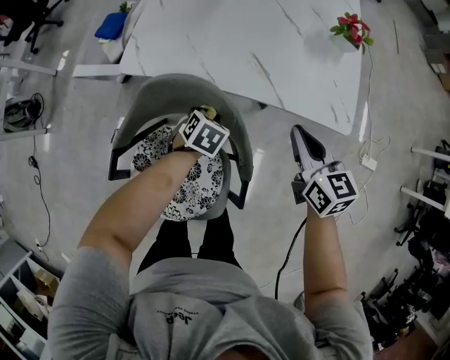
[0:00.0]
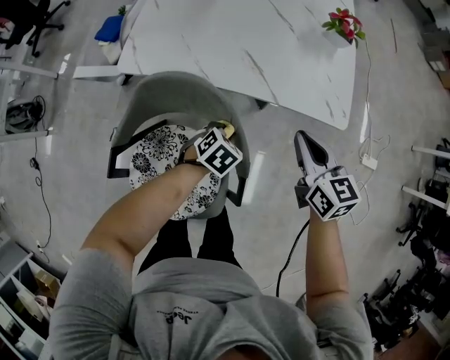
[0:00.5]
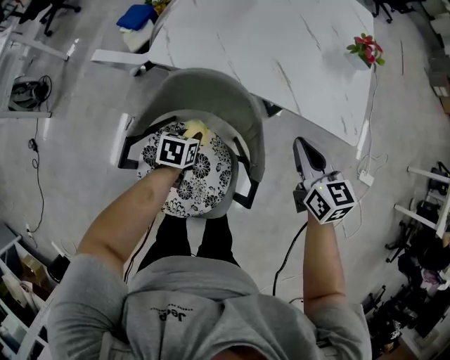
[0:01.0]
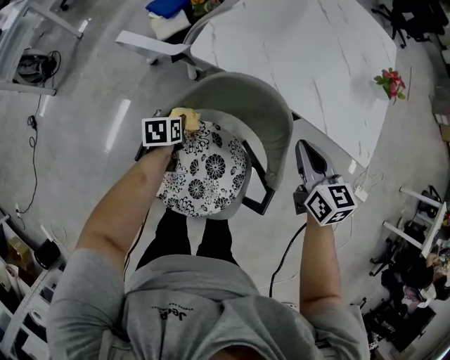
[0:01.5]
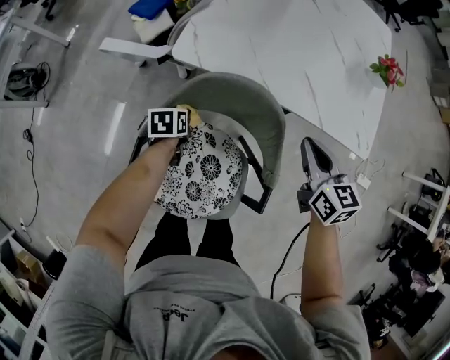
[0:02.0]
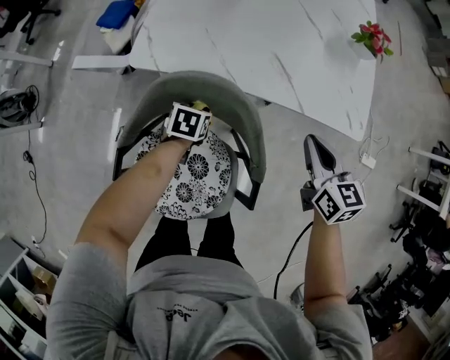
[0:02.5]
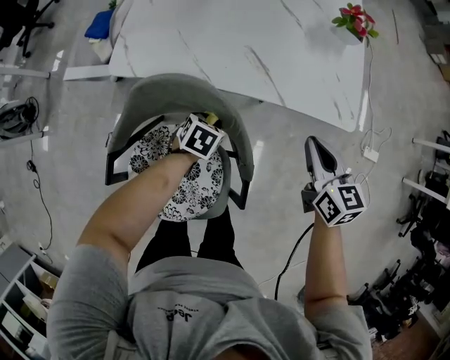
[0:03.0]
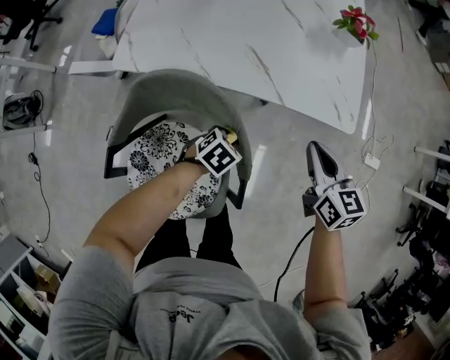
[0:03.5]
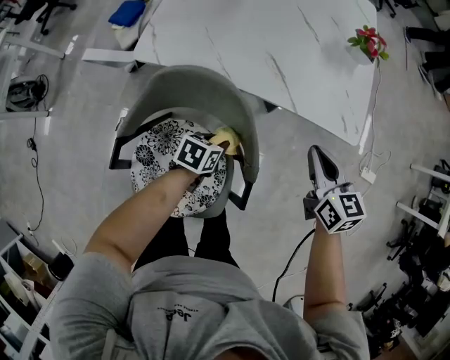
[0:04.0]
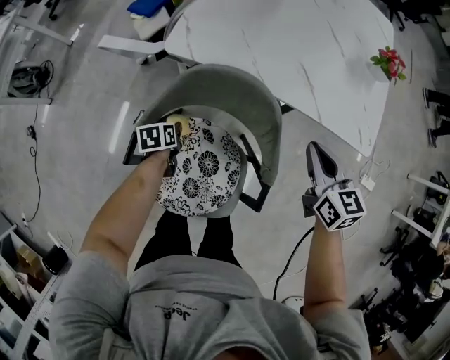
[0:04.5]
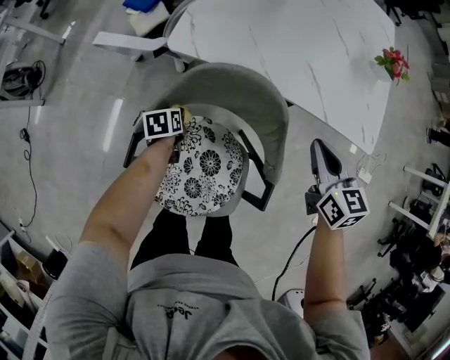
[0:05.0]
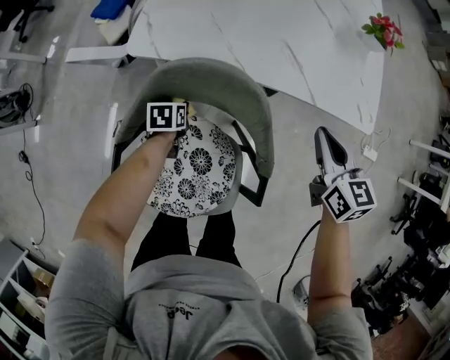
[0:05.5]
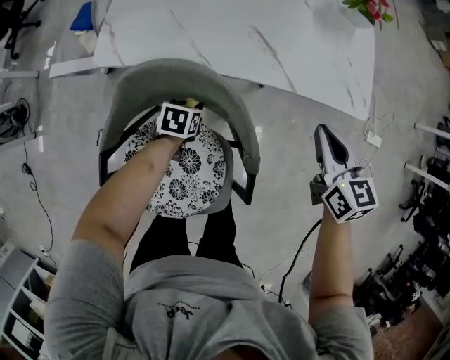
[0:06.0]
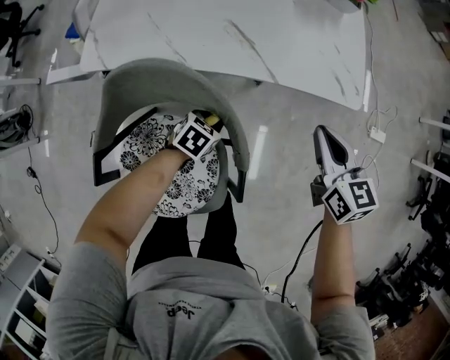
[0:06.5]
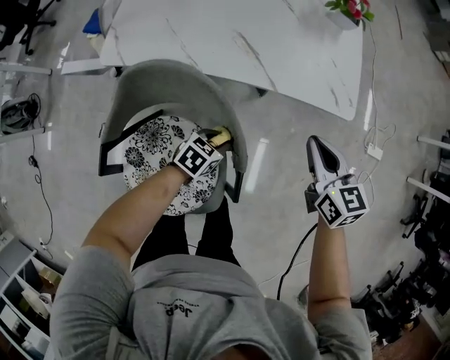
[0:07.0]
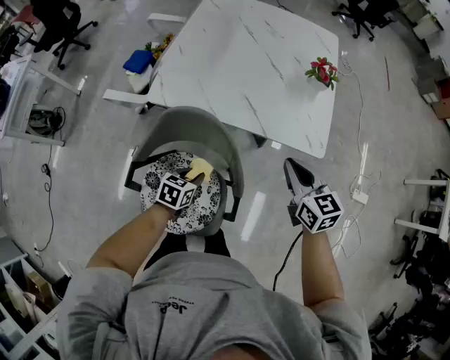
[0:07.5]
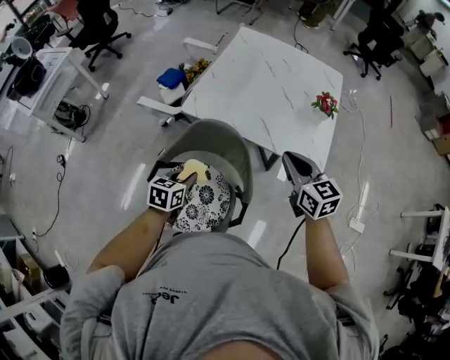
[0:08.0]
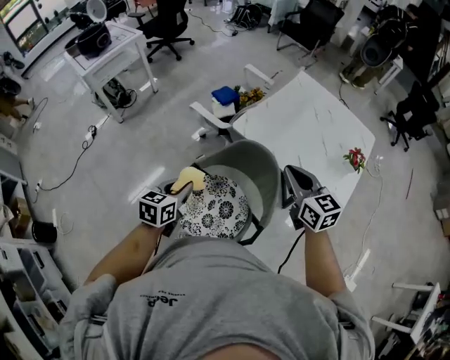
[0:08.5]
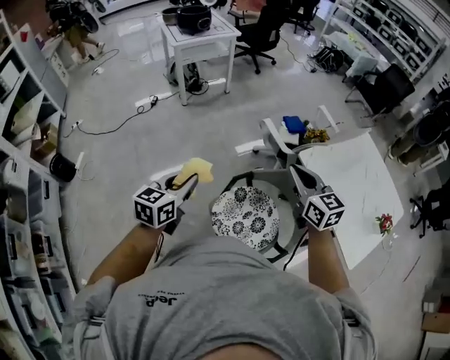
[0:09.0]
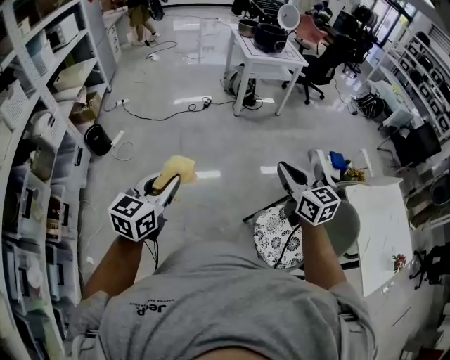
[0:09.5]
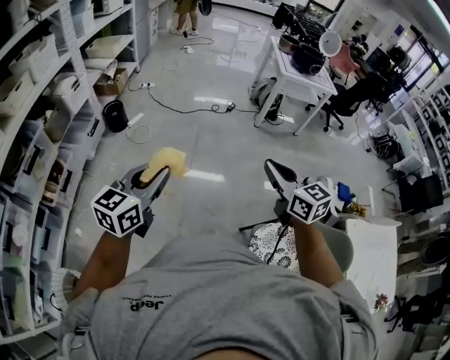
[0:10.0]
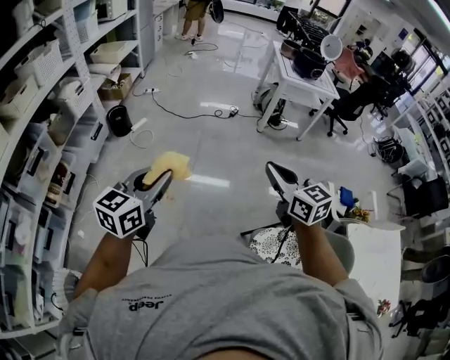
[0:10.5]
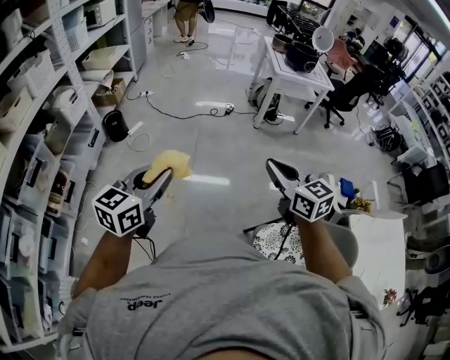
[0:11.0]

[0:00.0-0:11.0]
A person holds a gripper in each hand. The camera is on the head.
0.0 to 2.0 s: The left gripper goes approximately 25 cm to the left, and rotates around the line of its fingers by some 40 degrees, counterclockwise from behind, while the right gripper moves to the left, approximately 10 cm.
2.0 to 3.5 s: The left gripper moves approximately 35 cm, and rotates around the line of its fingers by about 50 degrees, clockwise from behind. Meanwhile the right gripper moves roughly 15 cm.
3.5 to 5.5 s: The left gripper changes place by approximately 30 cm, and rolls counterclockwise, seen from behind, by about 40 degrees.
5.5 to 7.5 s: The left gripper shifts roughly 25 cm upward, to the right and backward, and turns by about 20 degrees, while the right gripper travels upward and to the right by about 10 cm.
7.5 to 9.0 s: Both grippers are carried approximately 40 cm. The left gripper tilts its fingers some 30 degrees upward. Meanwhile the right gripper turns by roughly 50 degrees.
9.0 to 11.0 s: The two grippers travel together, some 40 cm. The left gripper rotates roughly 30 degrees, while the right gripper turns by some 40 degrees.

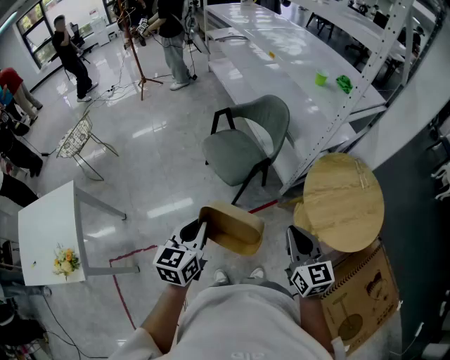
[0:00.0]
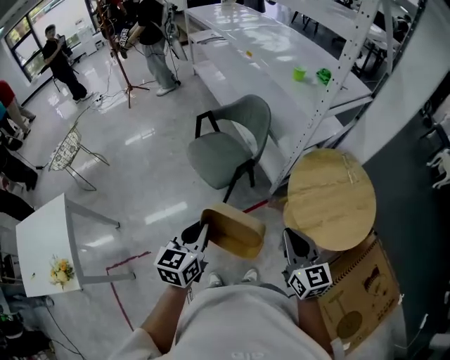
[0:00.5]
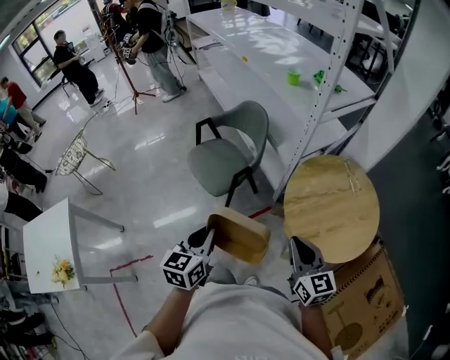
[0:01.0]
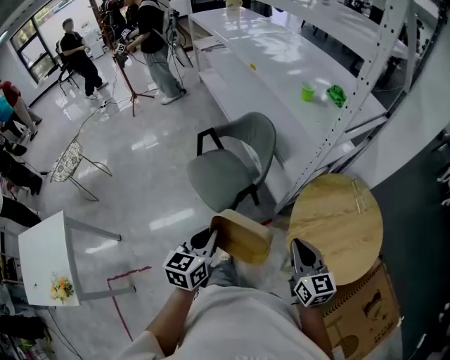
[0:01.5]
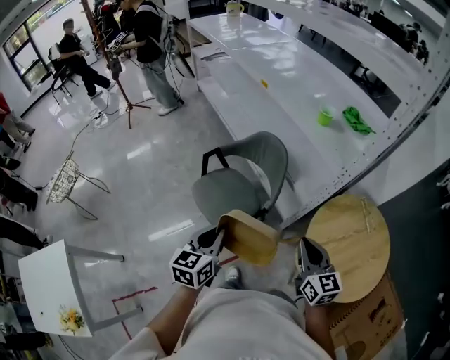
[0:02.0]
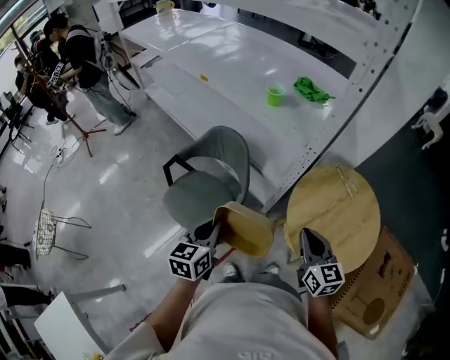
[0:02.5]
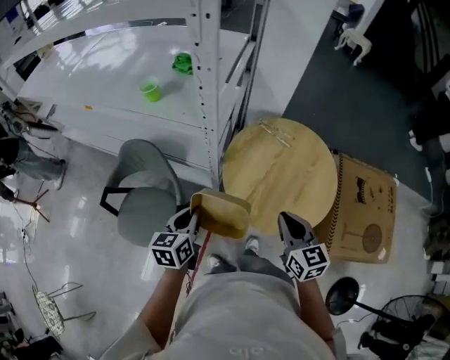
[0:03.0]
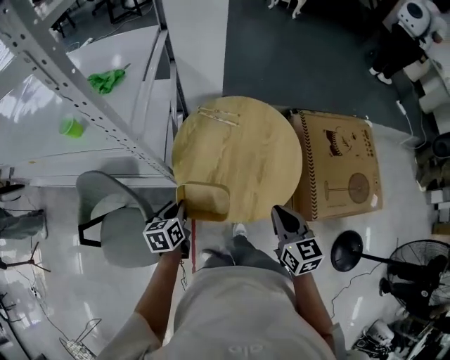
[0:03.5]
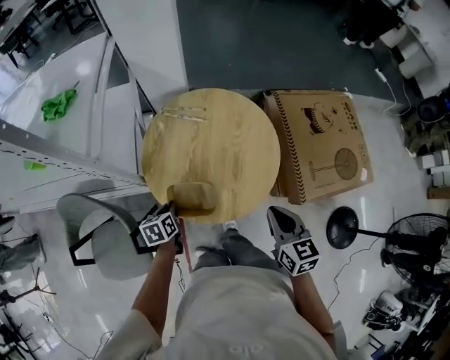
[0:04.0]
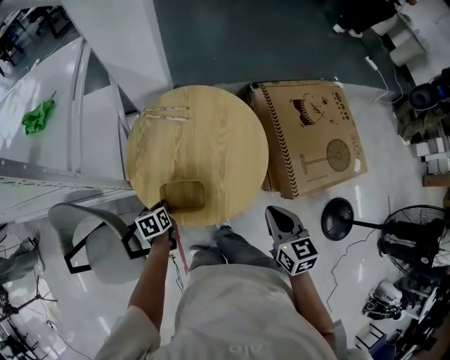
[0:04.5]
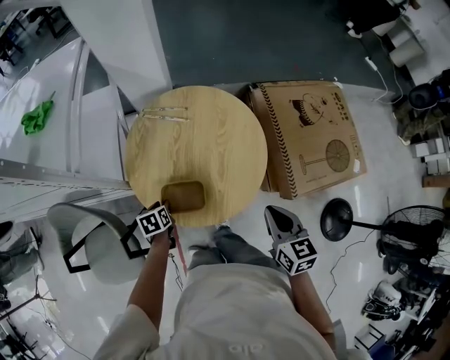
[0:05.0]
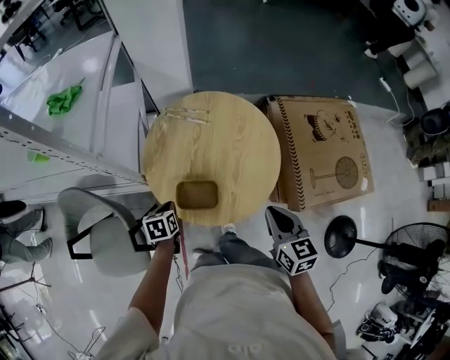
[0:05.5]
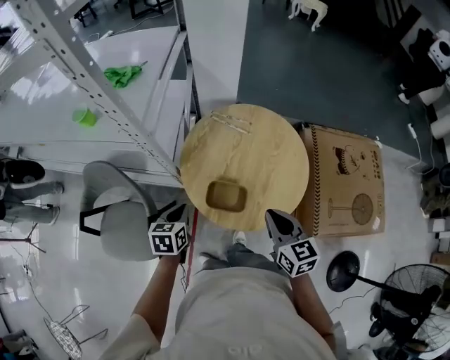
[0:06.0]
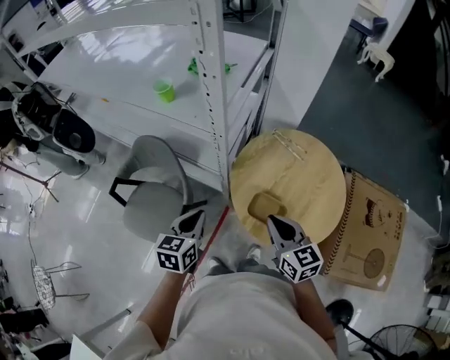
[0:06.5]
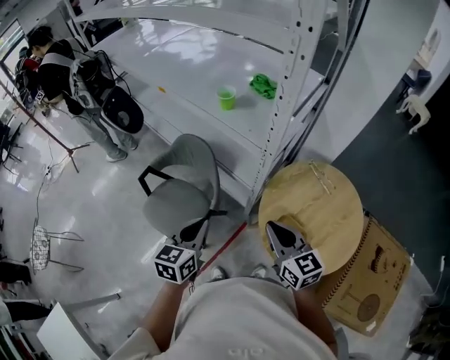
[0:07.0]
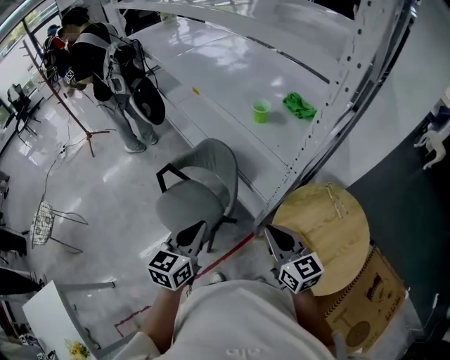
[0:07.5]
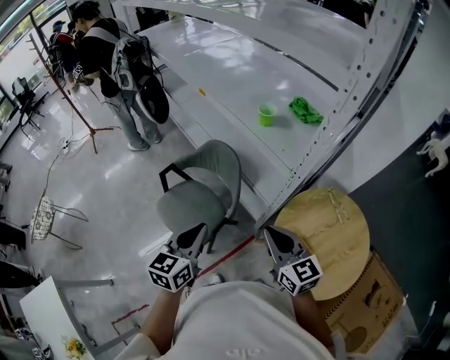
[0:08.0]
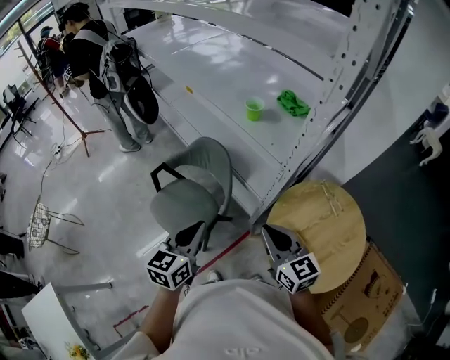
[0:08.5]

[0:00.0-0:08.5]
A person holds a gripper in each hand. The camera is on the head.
0.0 to 2.0 s: The two grippers go roughly 30 cm forward.
2.0 to 4.0 s: The left gripper shifts by some 50 cm, and rotates some 60 degrees; the right gripper changes place by about 40 cm, and swivels roughly 60 degrees.
4.0 to 6.5 s: The right gripper ends up some 25 cm from where it was, and swivels roughly 40 degrees; the left gripper moves upward, roughly 20 cm, turns by about 30 degrees, and opens and closes again.
6.5 to 8.5 s: The left gripper moves roughly 20 cm, and rotates some 20 degrees; the right gripper shifts by approximately 20 cm, and changes its angle by some 30 degrees.

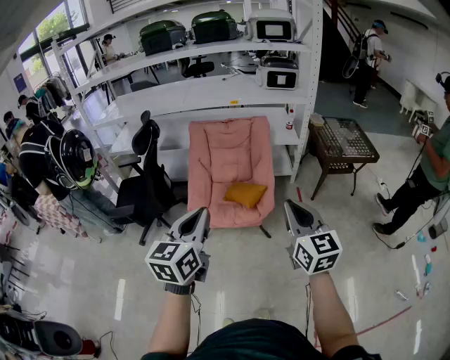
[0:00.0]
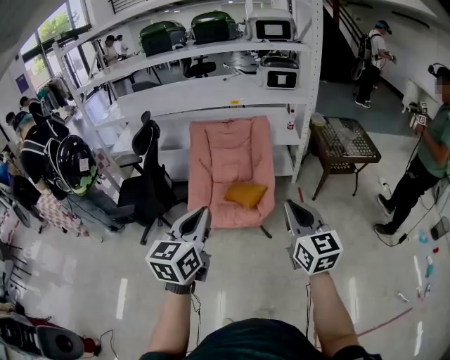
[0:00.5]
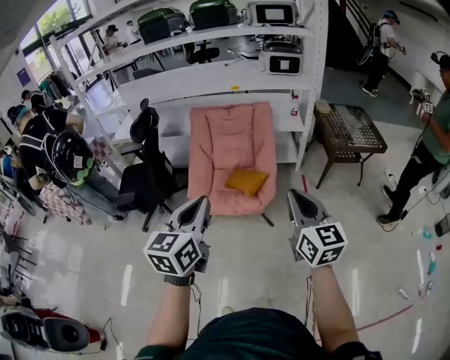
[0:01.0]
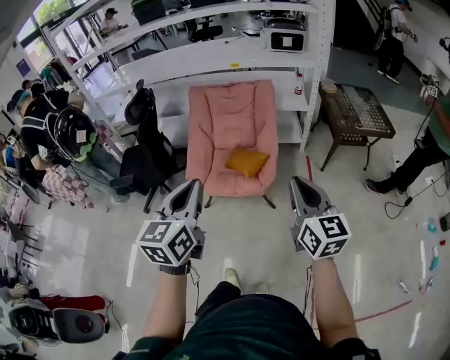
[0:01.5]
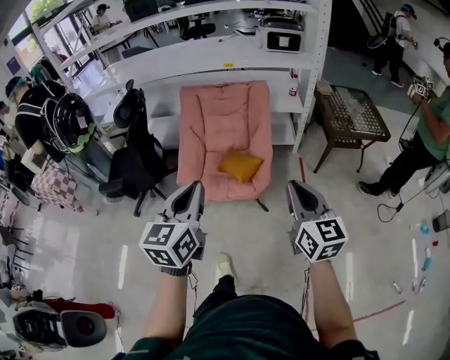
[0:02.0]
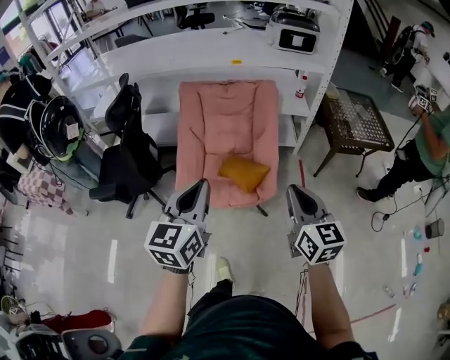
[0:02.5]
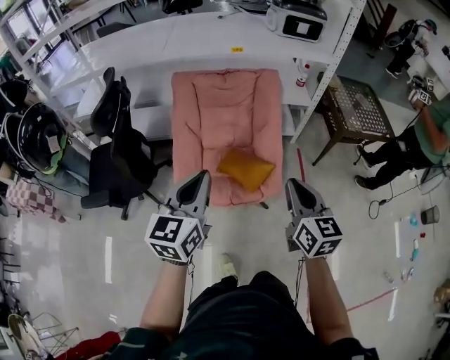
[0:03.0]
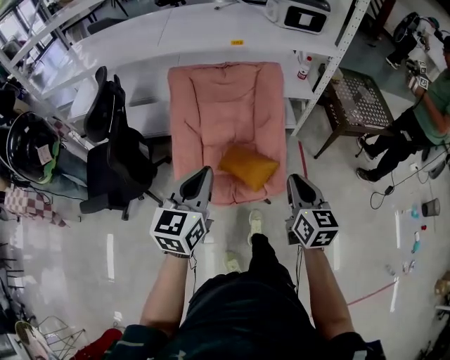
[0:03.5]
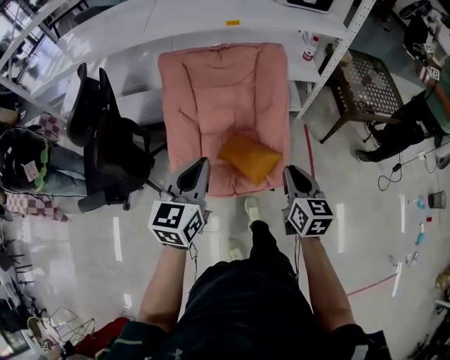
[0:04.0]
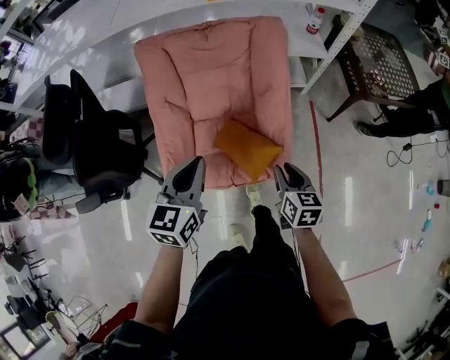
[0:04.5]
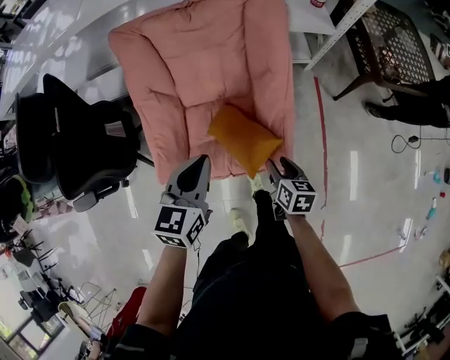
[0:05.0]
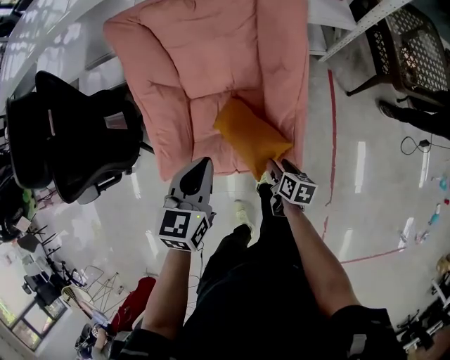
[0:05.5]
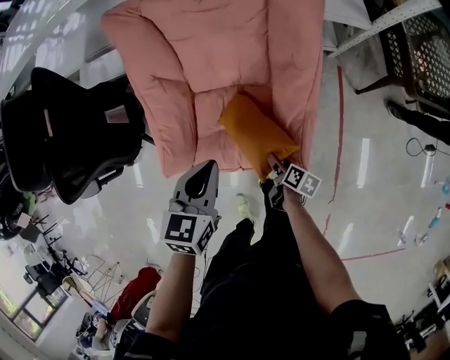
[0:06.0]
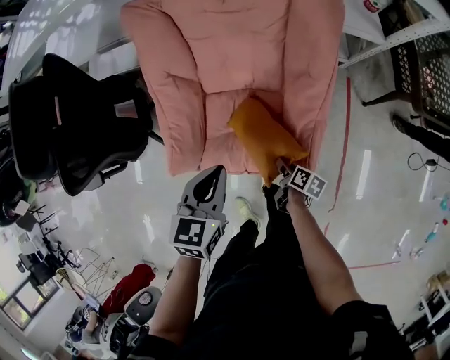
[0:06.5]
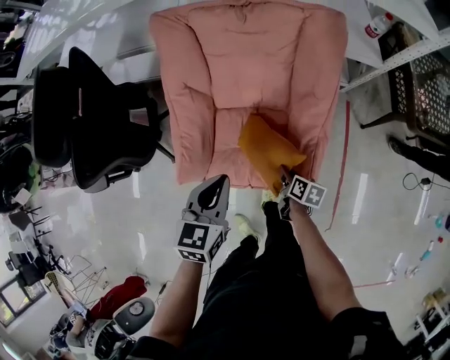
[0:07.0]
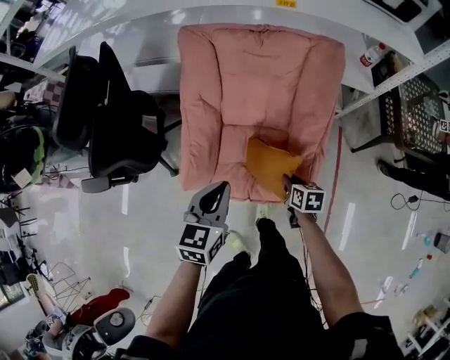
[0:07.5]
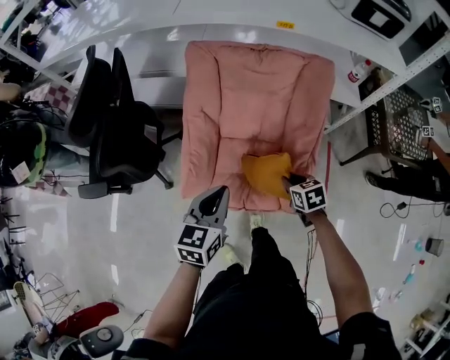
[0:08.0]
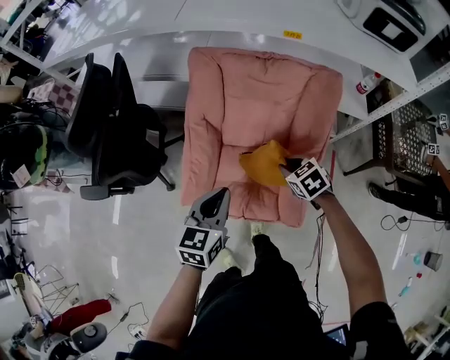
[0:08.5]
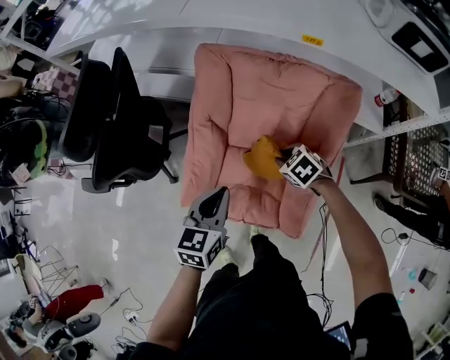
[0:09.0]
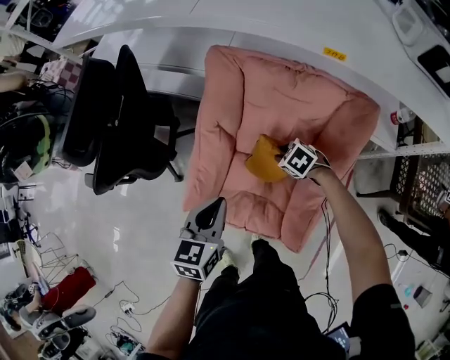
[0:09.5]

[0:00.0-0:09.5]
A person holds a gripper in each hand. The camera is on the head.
0.0 to 2.0 s: The right gripper goes some 15 cm forward, to the right and downward; the left gripper is displaced forward and to the right by approximately 10 cm.
2.0 to 4.0 s: The right gripper travels forward, downward and to the left by roughly 40 cm, and turns by roughly 20 degrees, while the left gripper shifts some 35 cm forward and downward.
4.0 to 5.5 s: The right gripper goes roughly 35 cm downward, turns by roughly 40 degrees, and opens its fingers, while the left gripper moves downward and forward, roughly 25 cm, and rotates approximately 20 degrees.
5.5 to 7.5 s: The left gripper moves to the left and backward, approximately 10 cm. Meanwhile the right gripper heads upward and forward, covering some 10 cm, changes its angle by some 30 degrees, and closes.
7.5 to 9.5 s: The right gripper moves roughly 10 cm upward and comes back, and rolls counterclockwise, seen from behind, by about 70 degrees. The left gripper shifts by roughly 10 cm.
